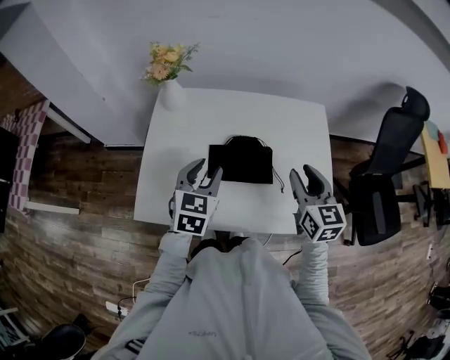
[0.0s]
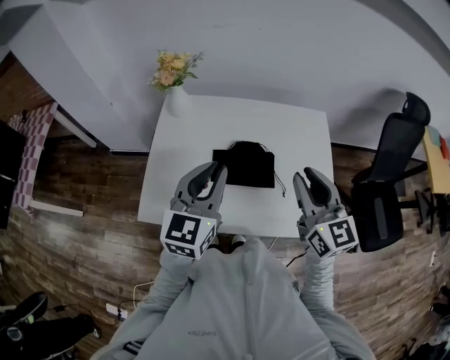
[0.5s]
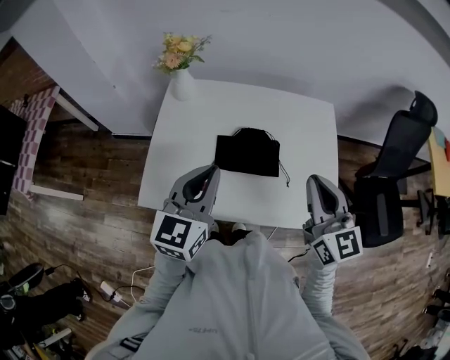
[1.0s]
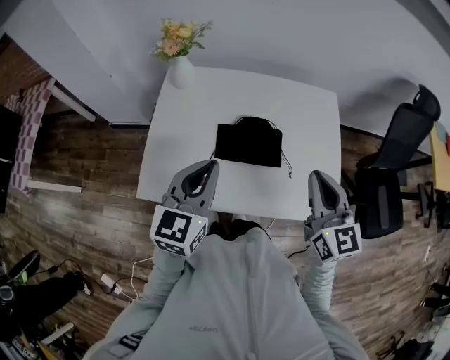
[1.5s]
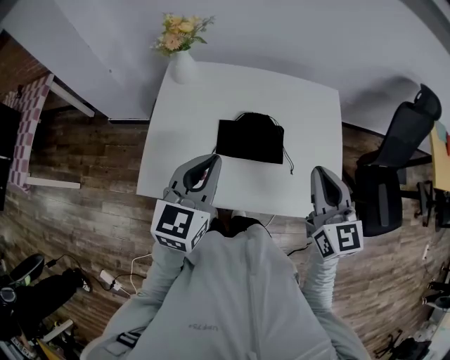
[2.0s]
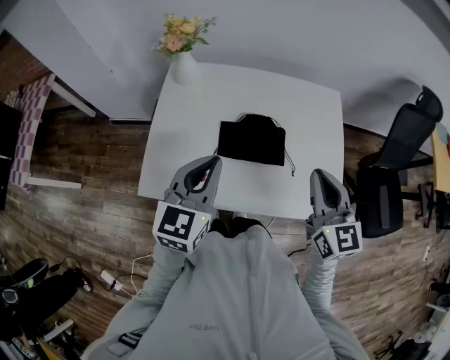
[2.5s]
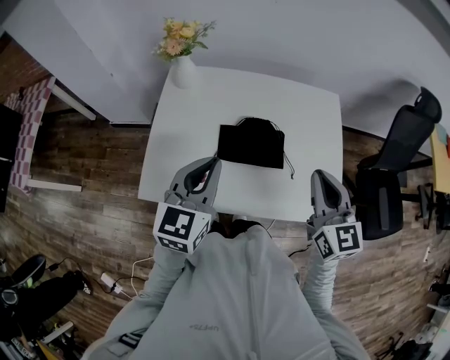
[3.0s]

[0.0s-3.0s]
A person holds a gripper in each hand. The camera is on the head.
0.0s to 1.5s: The grippers both shift upward and backward by approximately 10 cm. The left gripper closes. The right gripper closes its fingers.
1.5s to 3.0s: The two grippers keep their place.

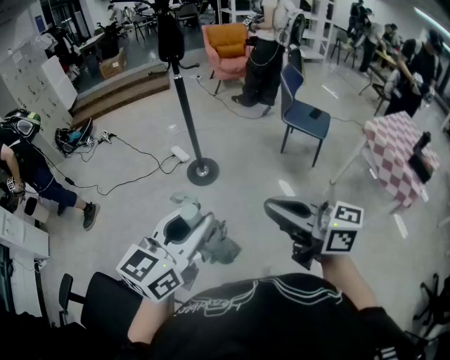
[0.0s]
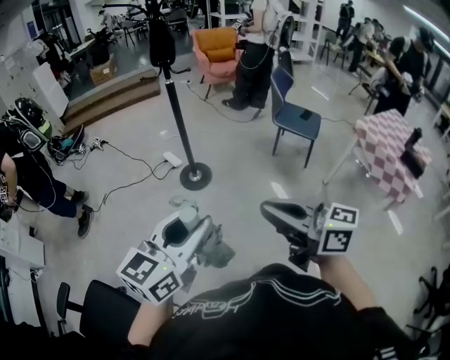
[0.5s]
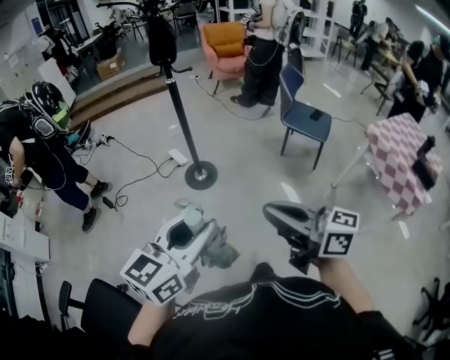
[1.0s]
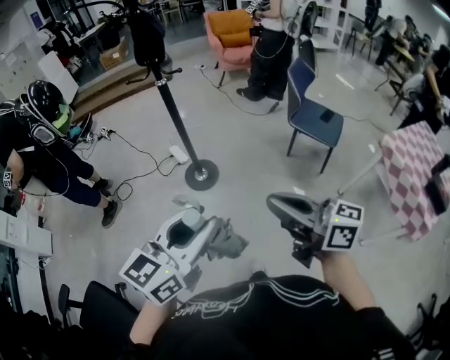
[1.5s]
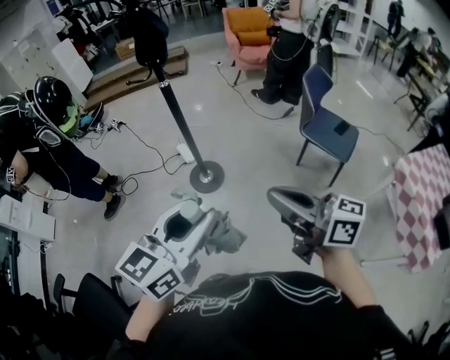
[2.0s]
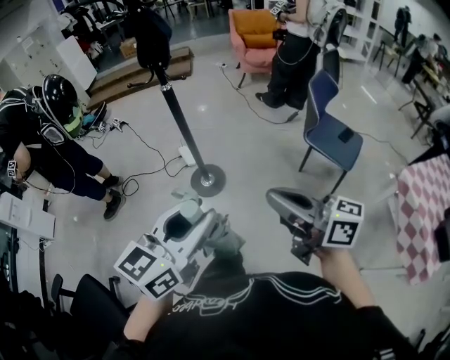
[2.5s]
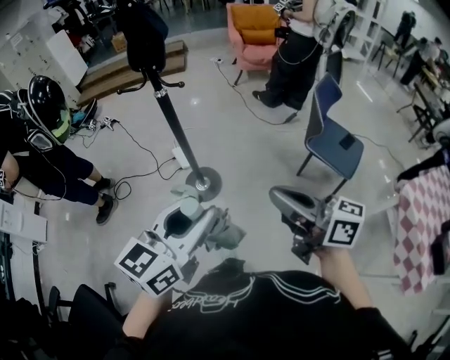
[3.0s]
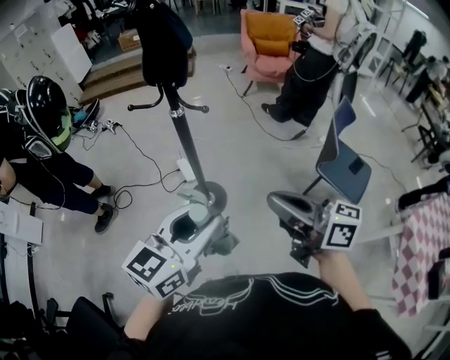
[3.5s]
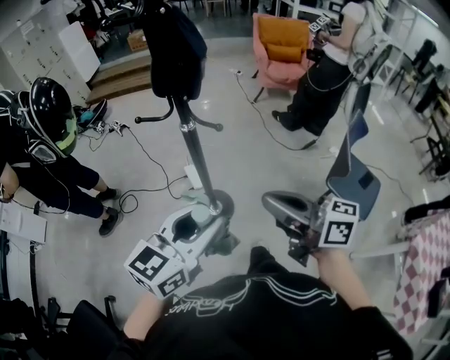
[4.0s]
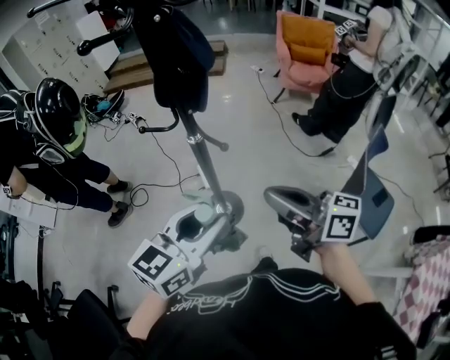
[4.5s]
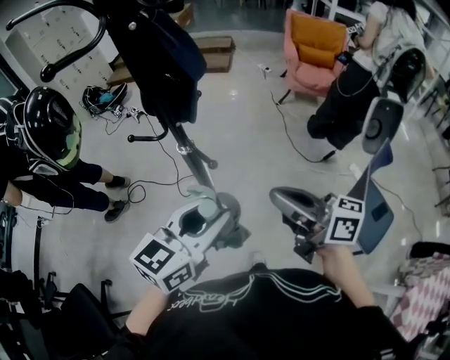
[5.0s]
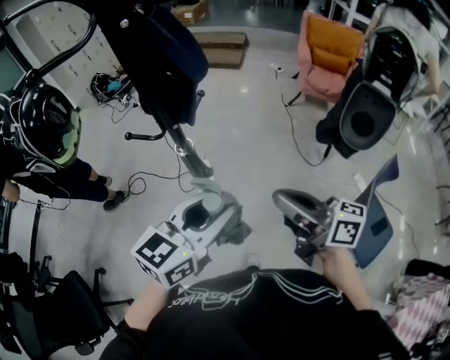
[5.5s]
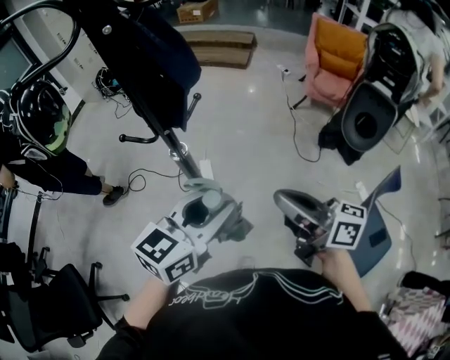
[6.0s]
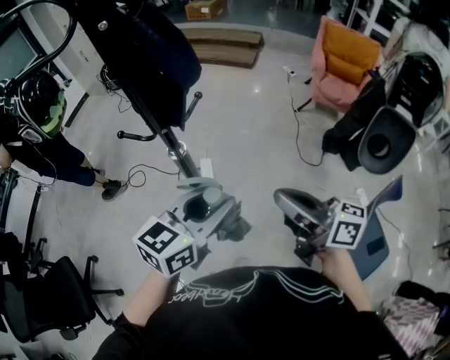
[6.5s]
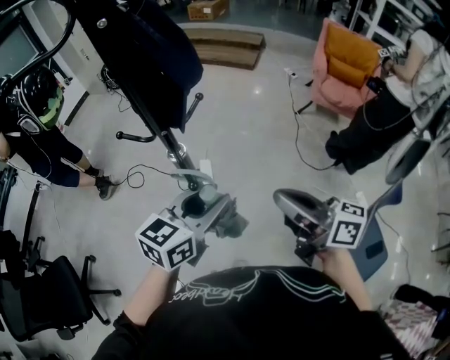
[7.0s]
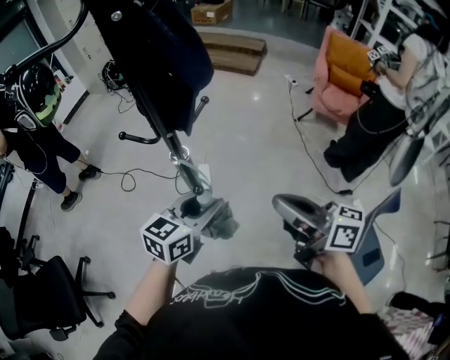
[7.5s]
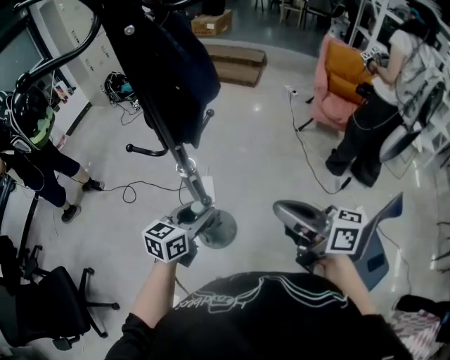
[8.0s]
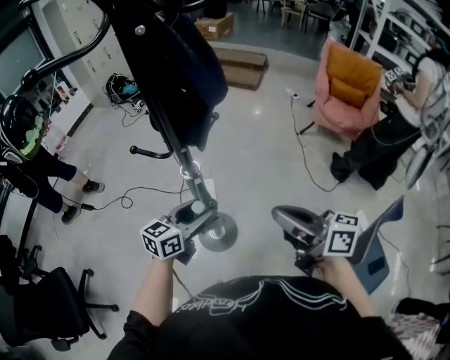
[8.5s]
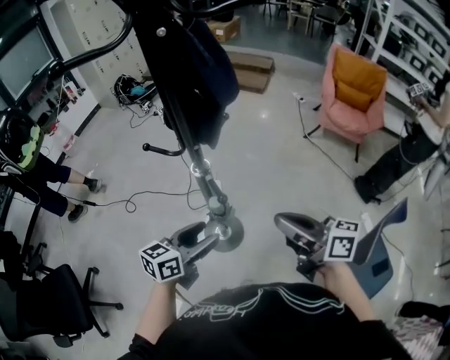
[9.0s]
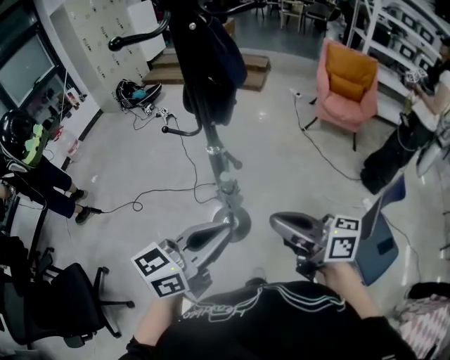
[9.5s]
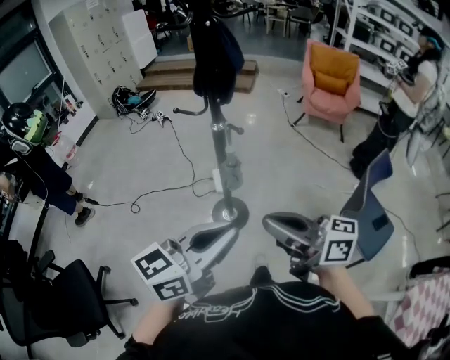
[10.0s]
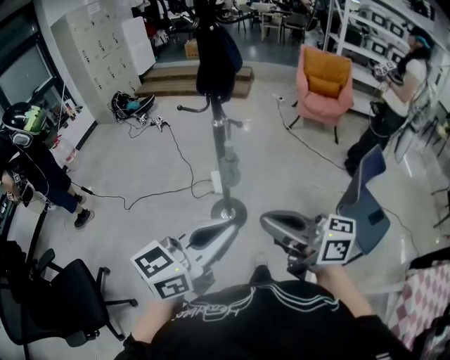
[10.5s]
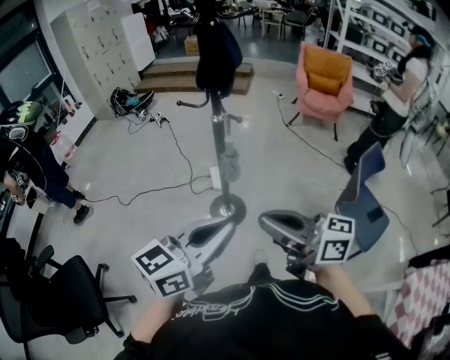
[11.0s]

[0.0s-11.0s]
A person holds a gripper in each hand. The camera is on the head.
0.0s to 2.0s: Both grippers travel together forward and to the right, approximately 30 cm.
2.0s to 3.5s: Both grippers travel together forward, some 25 cm.
3.5s to 5.5s: The two grippers go about 25 cm forward.
5.5s to 7.5s: The left gripper moves downward and forward, some 15 cm; the right gripper ends up roughly 5 cm from where it was.
7.5s to 9.0s: The left gripper moves to the left, some 10 cm, and opens up.
9.0s to 11.0s: The right gripper is displaced backward and to the left by some 30 cm; the left gripper shifts some 35 cm backward and upward, changes its angle by about 20 degrees, and closes.

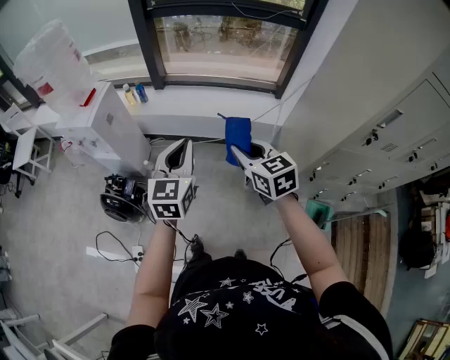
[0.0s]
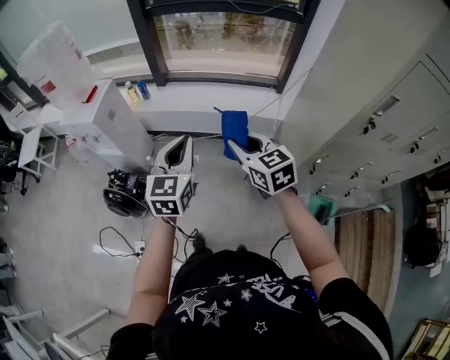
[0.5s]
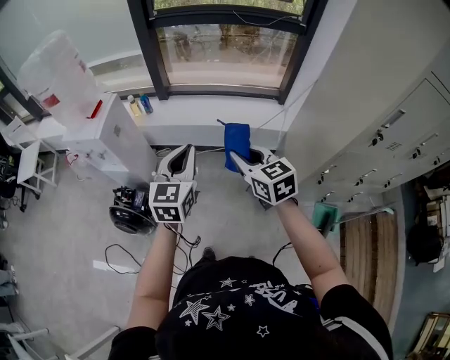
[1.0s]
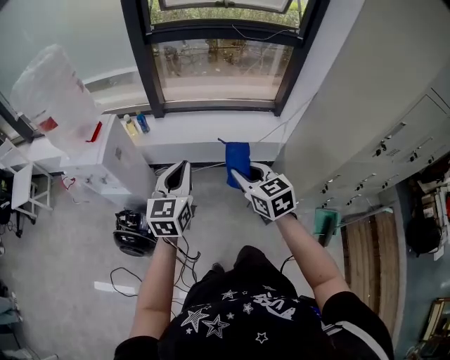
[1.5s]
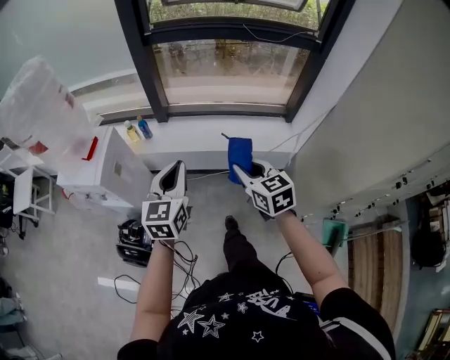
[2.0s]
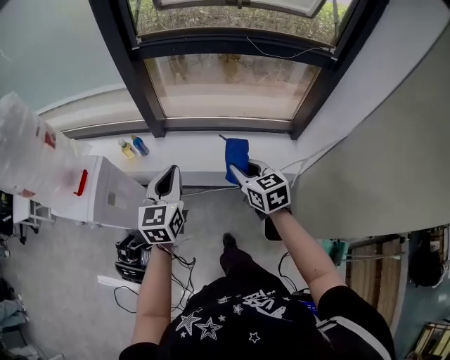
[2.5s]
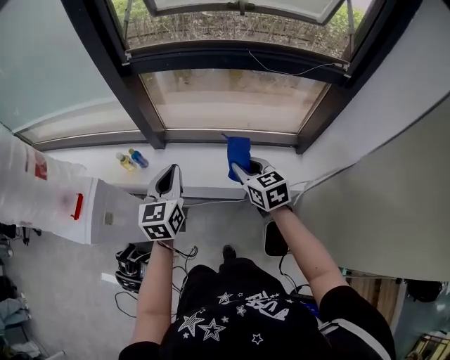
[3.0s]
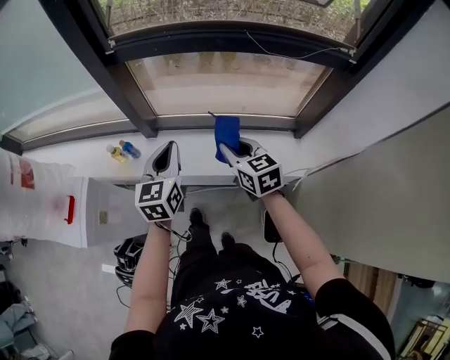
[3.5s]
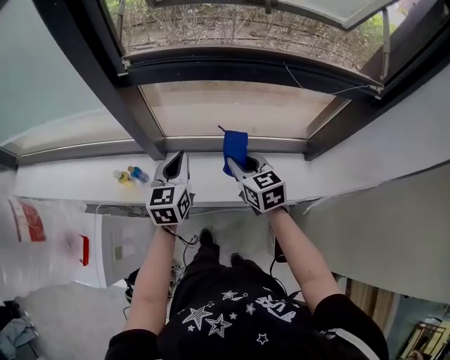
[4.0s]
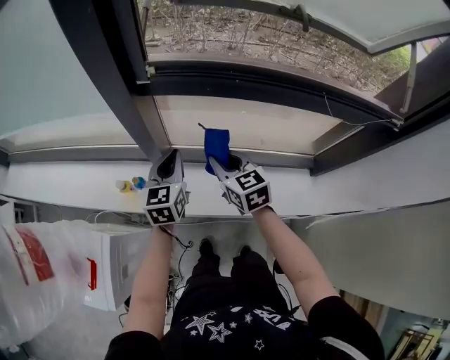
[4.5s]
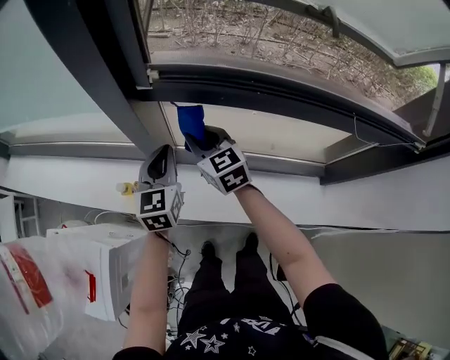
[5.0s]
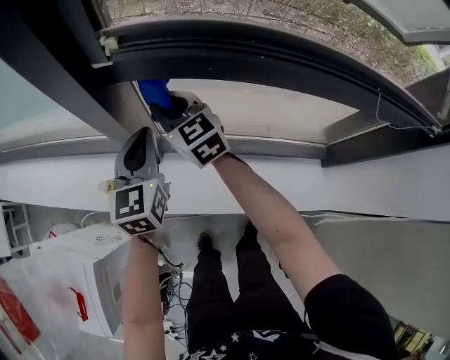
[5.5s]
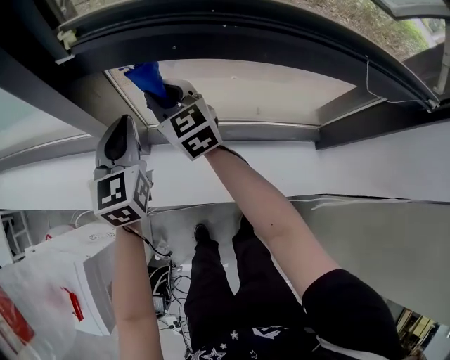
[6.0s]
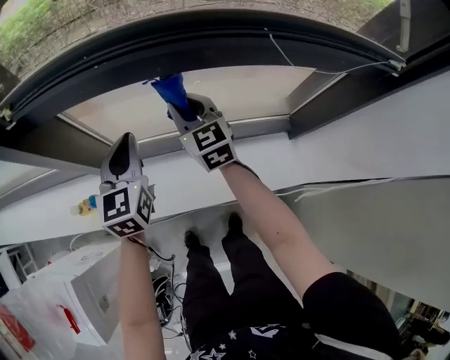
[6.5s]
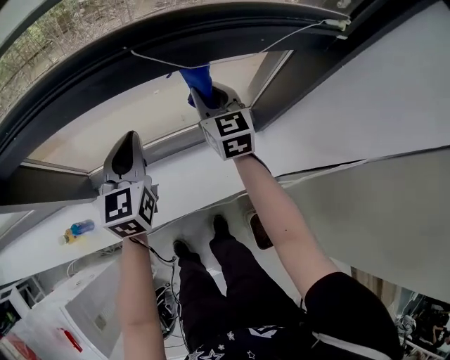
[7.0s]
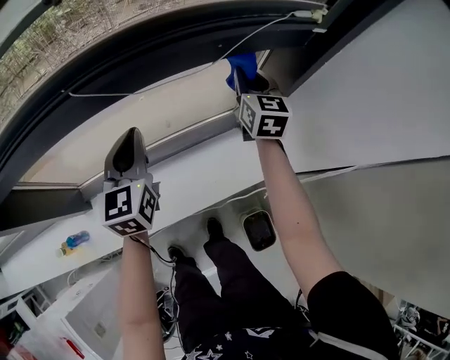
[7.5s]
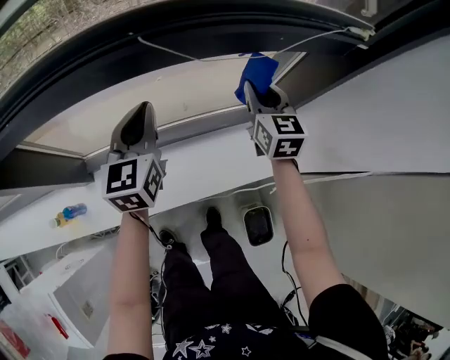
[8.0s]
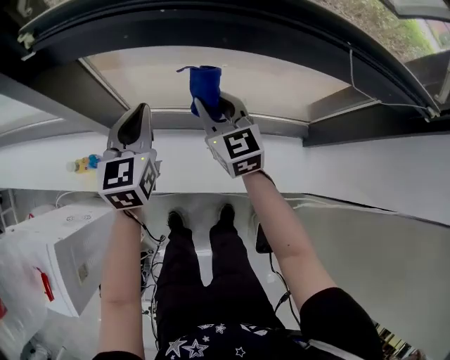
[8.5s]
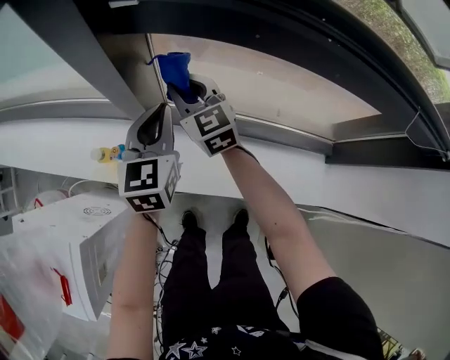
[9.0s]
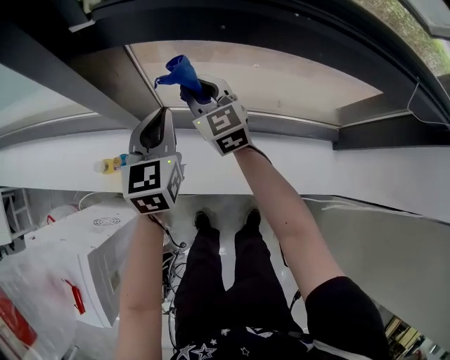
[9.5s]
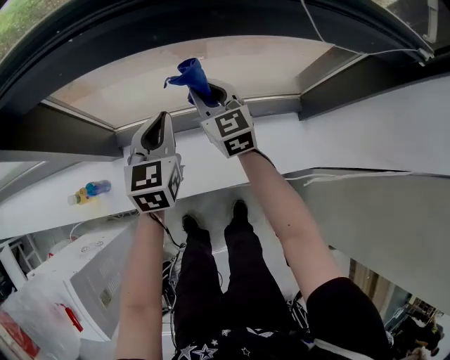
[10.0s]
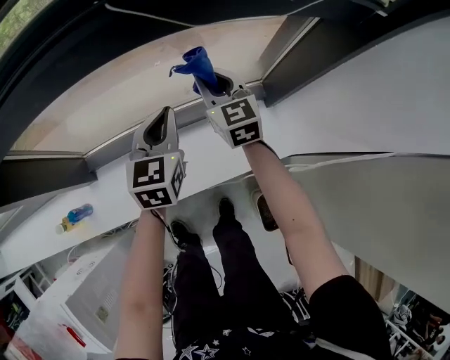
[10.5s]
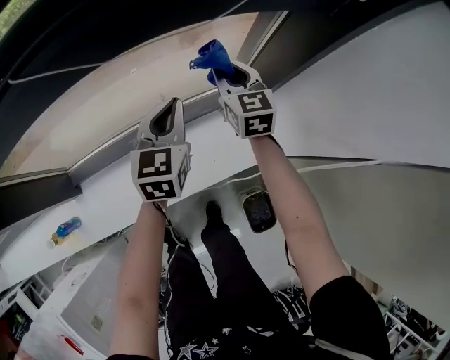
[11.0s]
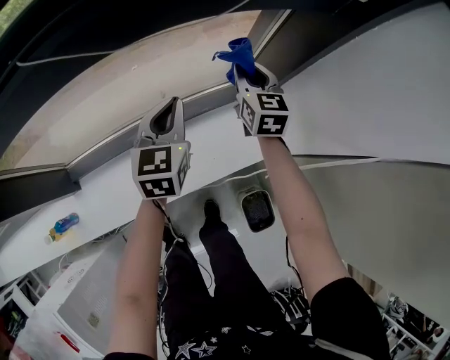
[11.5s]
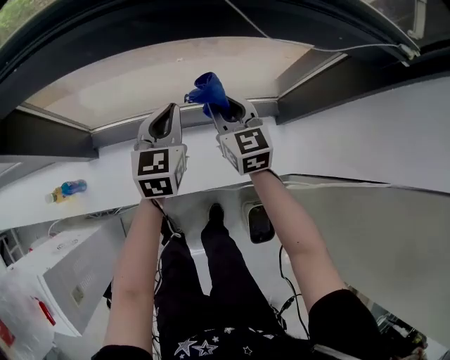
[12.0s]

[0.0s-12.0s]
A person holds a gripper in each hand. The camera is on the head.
0.0s to 2.0s: The right gripper heads forward, covering some 20 cm. Meanwhile the left gripper is displaced forward and to the left by some 20 cm.
2.0s to 4.0s: Both grippers are carried forward, approximately 40 cm.
4.0s to 6.0s: The left gripper goes about 20 cm forward; the right gripper travels forward and to the left by about 30 cm, and turns by about 20 degrees.
6.0s to 8.0s: The left gripper moves about 35 cm, and turns by roughly 20 degrees, while the right gripper changes place by roughly 60 cm, and rotates some 40 degrees.
8.0s to 10.0s: The right gripper turns by about 20 degrees.
10.0s to 12.0s: Both grippers travel together to the right, roughly 15 cm.

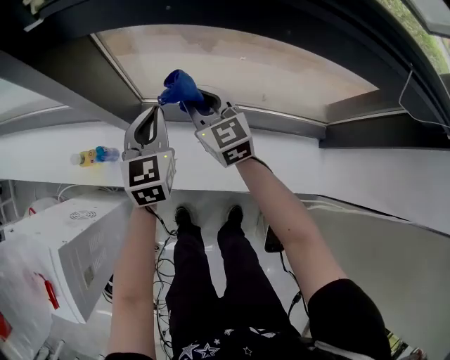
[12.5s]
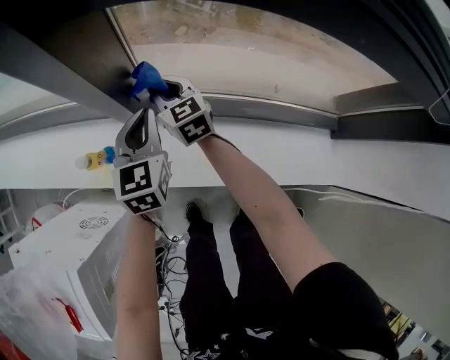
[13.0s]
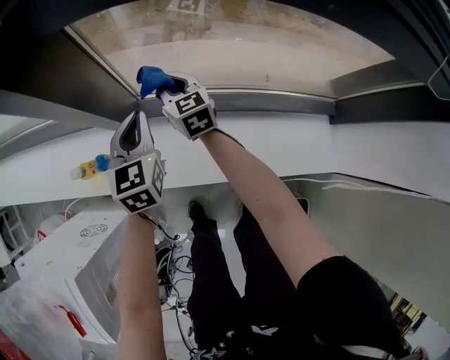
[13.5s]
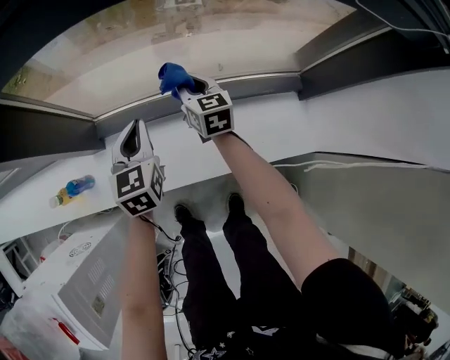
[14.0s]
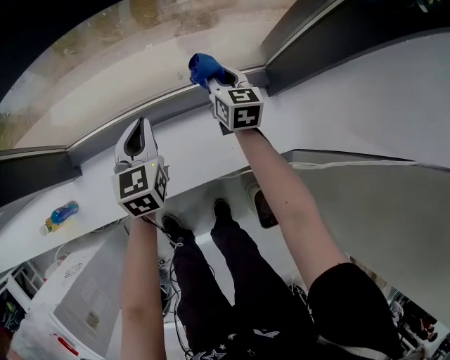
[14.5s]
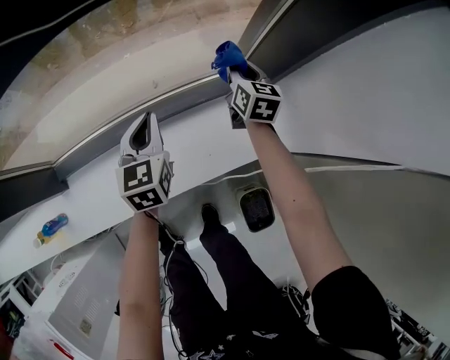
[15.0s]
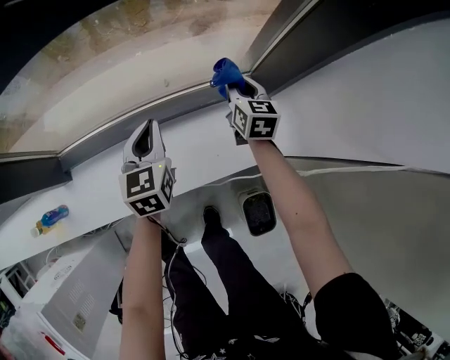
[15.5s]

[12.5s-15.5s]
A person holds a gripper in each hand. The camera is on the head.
12.5s to 14.0s: The left gripper goes approximately 15 cm to the right and downward, while the right gripper heads to the right and downward, covering some 20 cm, and swivels some 30 degrees.
14.0s to 15.5s: The two grippers go roughly 30 cm to the right. The right gripper changes its angle by about 20 degrees.
